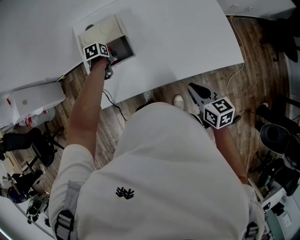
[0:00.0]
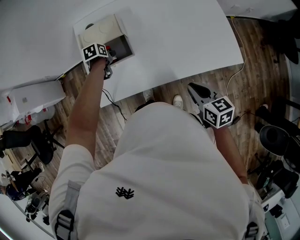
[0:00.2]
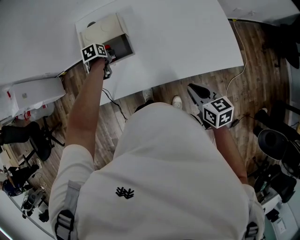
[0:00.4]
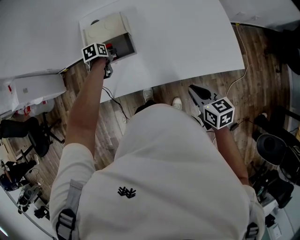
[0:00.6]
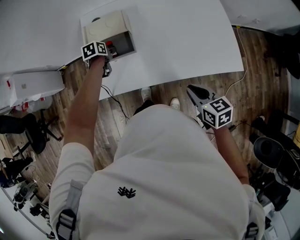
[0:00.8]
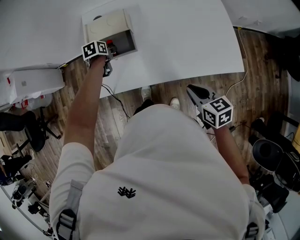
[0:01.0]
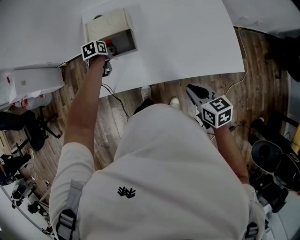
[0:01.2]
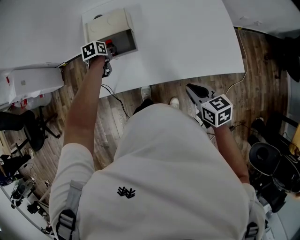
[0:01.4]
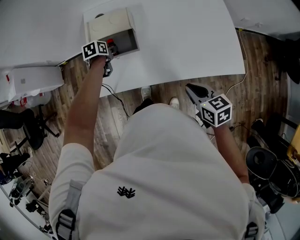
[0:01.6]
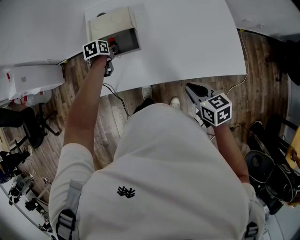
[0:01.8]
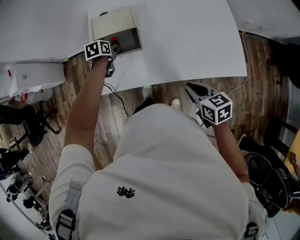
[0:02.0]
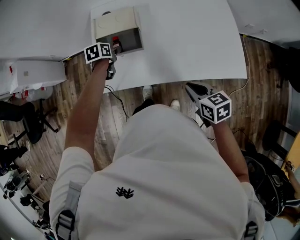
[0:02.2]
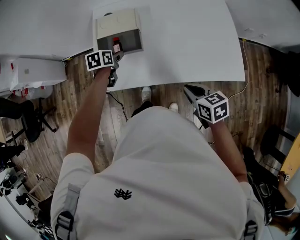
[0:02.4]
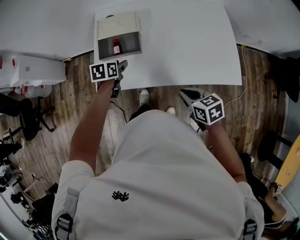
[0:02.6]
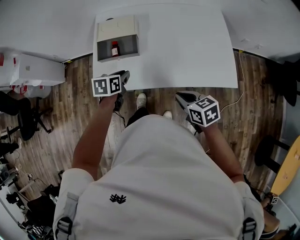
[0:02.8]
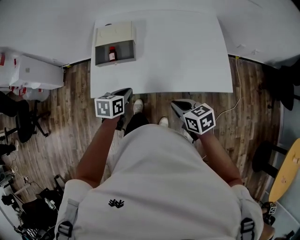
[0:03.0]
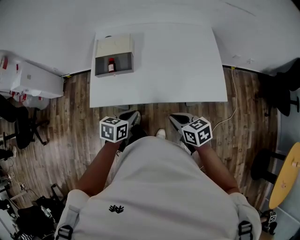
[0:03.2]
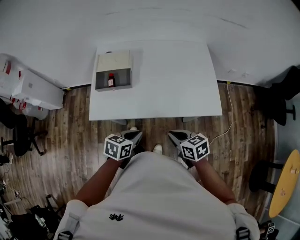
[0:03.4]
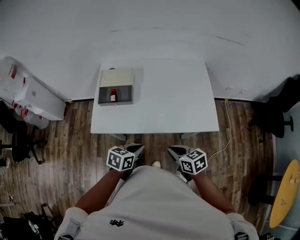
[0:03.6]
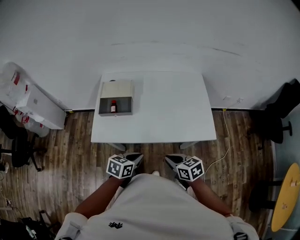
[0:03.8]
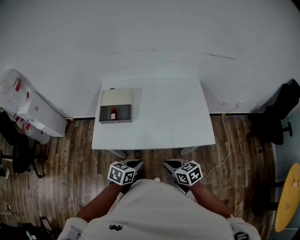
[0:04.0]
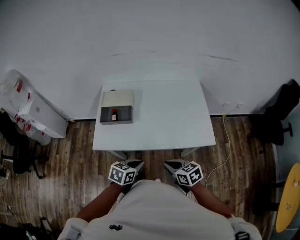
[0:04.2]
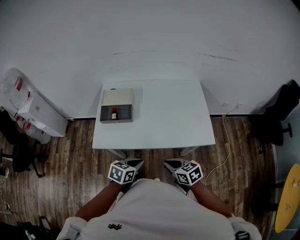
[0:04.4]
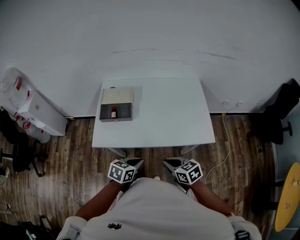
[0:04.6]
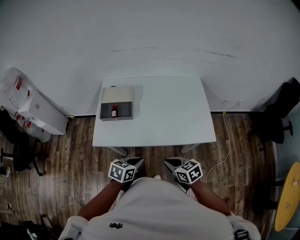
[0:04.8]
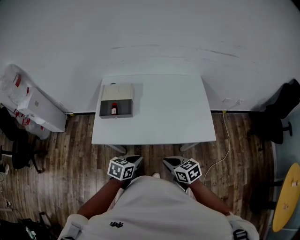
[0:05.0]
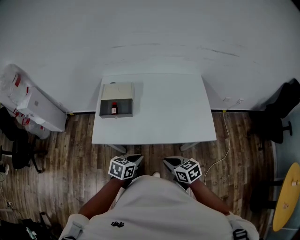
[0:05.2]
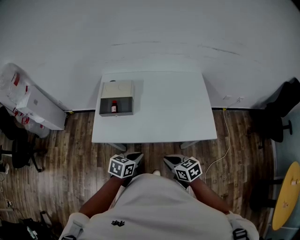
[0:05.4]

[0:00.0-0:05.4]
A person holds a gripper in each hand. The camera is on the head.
0:00.0 to 0:01.4: There are only small adjustments of the grippers.
0:01.4 to 0:02.8: The left gripper moves backward and upward, roughly 20 cm, and closes its fingers.
0:02.8 to 0:04.0: The left gripper shifts roughly 20 cm backward and to the right, while the right gripper shifts approximately 5 cm backward.
0:04.0 to 0:05.4: The grippers make only small movements.

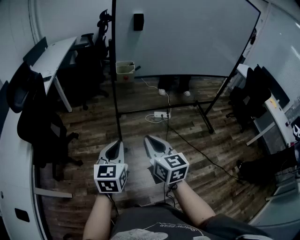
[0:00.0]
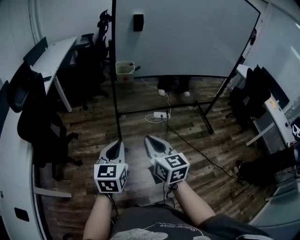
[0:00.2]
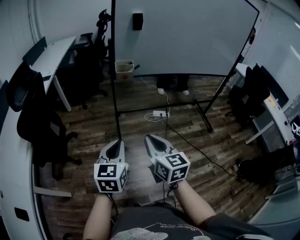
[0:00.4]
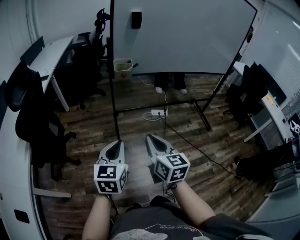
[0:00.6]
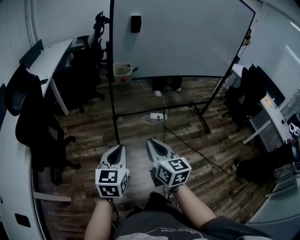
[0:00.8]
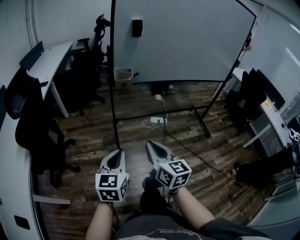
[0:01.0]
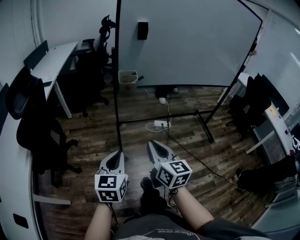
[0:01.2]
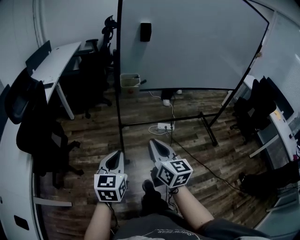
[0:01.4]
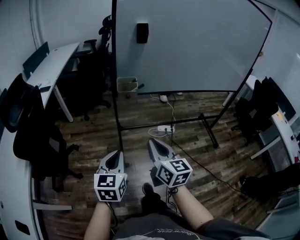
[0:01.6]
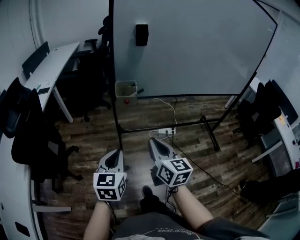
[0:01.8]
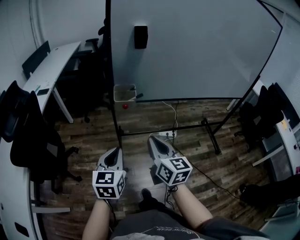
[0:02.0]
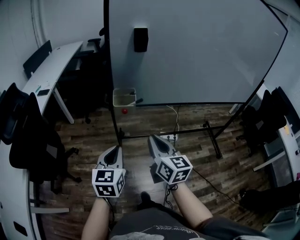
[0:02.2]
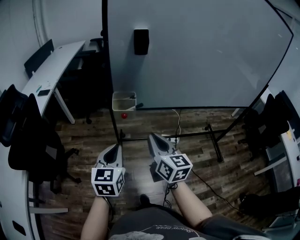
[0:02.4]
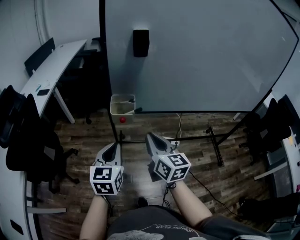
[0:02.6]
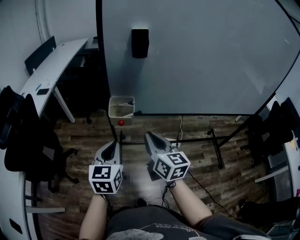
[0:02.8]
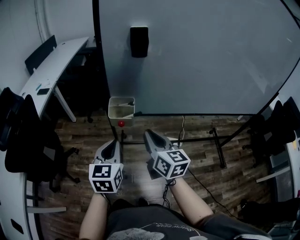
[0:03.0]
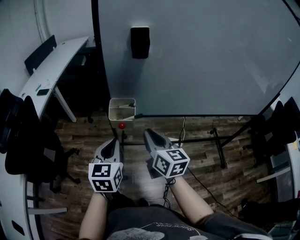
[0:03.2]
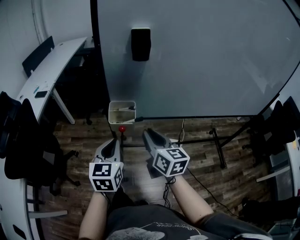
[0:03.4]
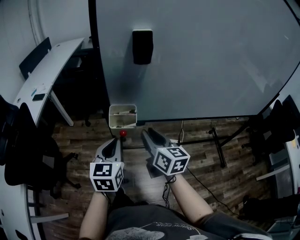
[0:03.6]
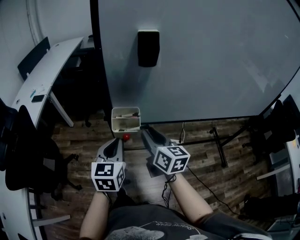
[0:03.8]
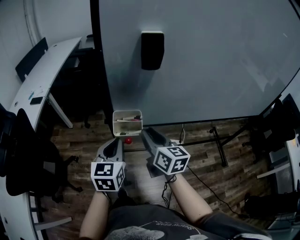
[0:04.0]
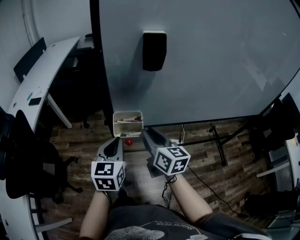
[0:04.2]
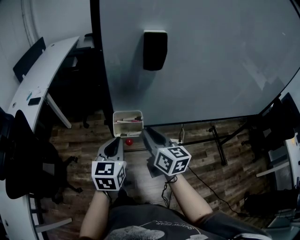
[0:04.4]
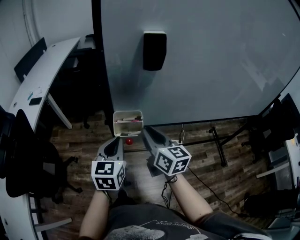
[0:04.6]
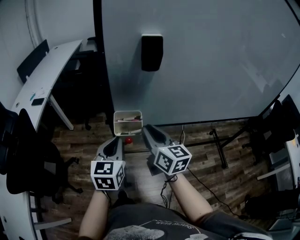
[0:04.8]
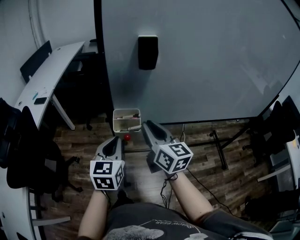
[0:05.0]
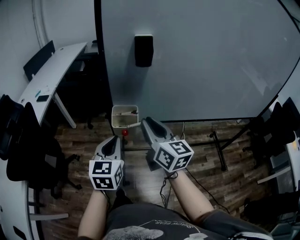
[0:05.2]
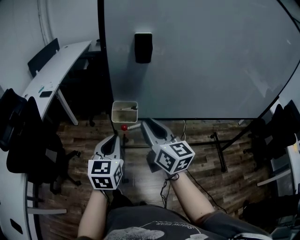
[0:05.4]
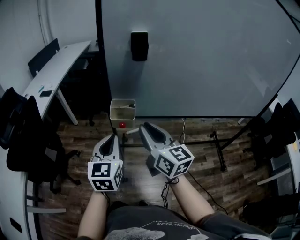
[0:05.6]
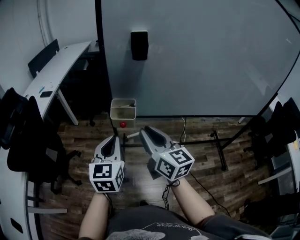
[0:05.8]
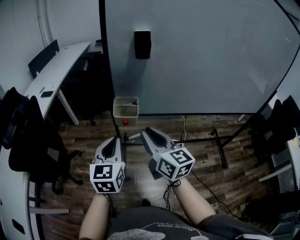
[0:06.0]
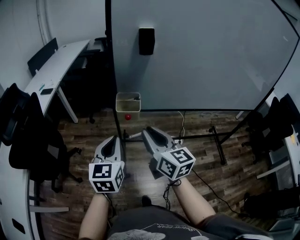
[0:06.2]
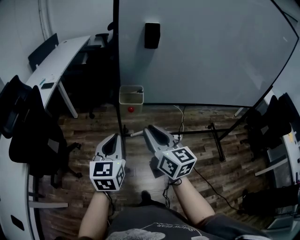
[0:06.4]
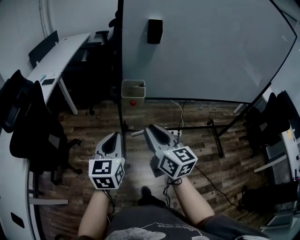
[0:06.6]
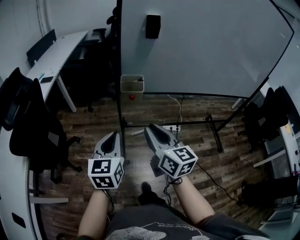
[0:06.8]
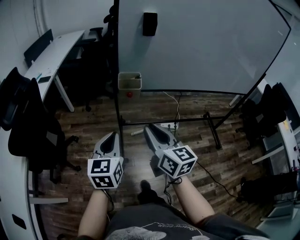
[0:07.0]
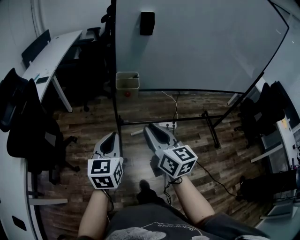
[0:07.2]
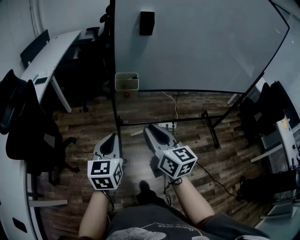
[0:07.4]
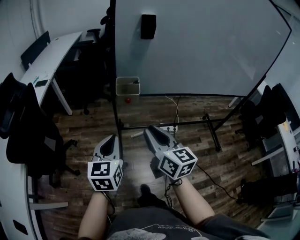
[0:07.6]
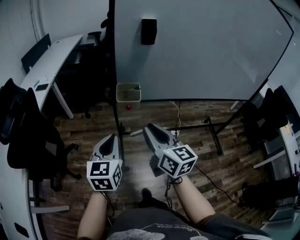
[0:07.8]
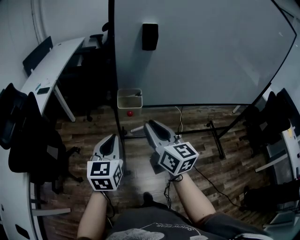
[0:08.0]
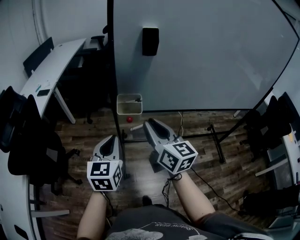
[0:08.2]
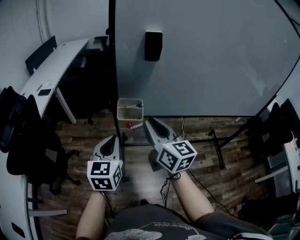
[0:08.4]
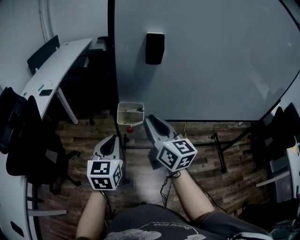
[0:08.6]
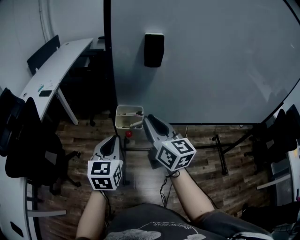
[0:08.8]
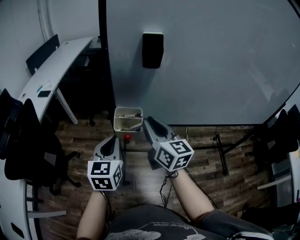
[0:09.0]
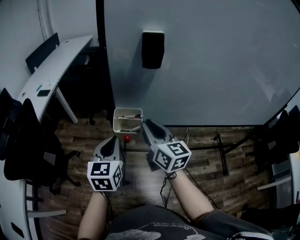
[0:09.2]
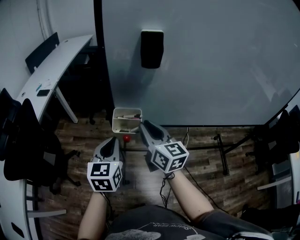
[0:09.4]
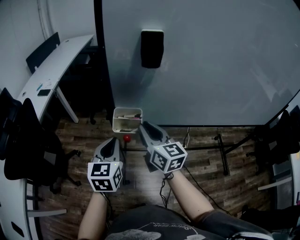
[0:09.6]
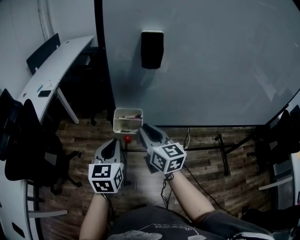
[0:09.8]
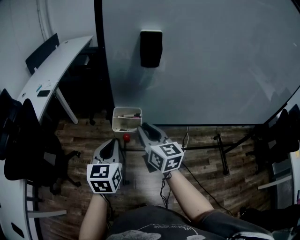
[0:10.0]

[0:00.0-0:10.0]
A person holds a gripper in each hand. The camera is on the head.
0:00.0 to 0:01.4: The grippers both shift forward by some 5 cm.
0:01.4 to 0:02.8: Both grippers move forward, about 25 cm.
0:02.8 to 0:04.2: Both grippers travel together forward, about 15 cm. The right gripper opens.
0:04.2 to 0:05.8: The left gripper shifts roughly 10 cm backward. The right gripper shifts some 15 cm backward and upward.
0:05.8 to 0:07.2: The left gripper moves backward and to the left, some 15 cm, while the right gripper goes approximately 15 cm backward.
0:07.2 to 0:08.6: Both grippers move forward, about 20 cm.
0:08.6 to 0:10.0: The right gripper is displaced downward and forward by roughly 10 cm.

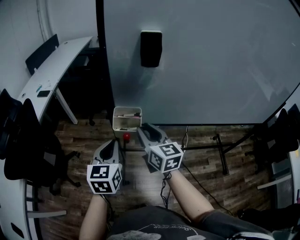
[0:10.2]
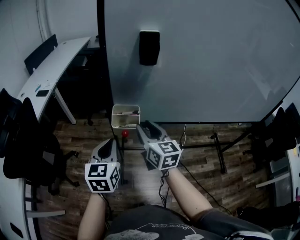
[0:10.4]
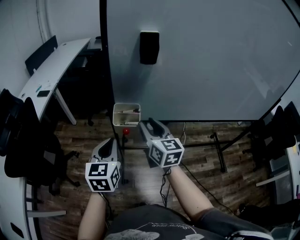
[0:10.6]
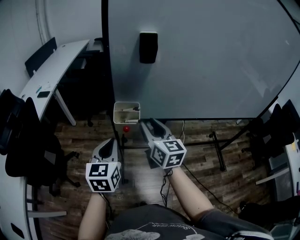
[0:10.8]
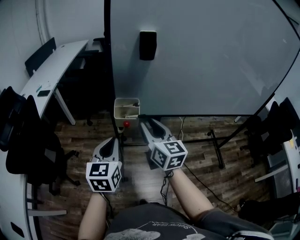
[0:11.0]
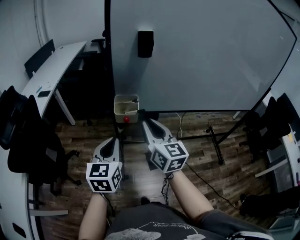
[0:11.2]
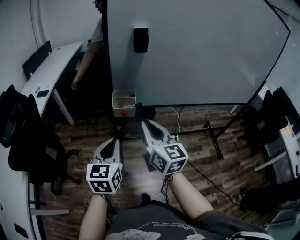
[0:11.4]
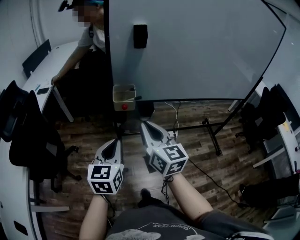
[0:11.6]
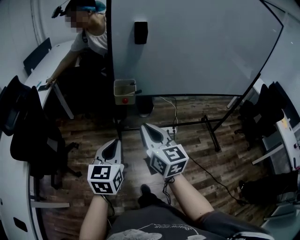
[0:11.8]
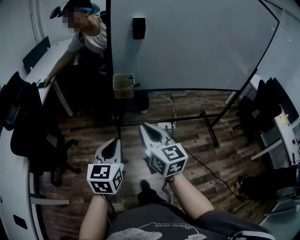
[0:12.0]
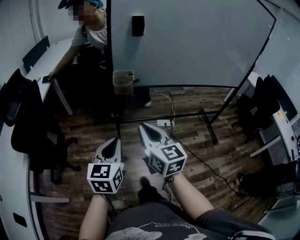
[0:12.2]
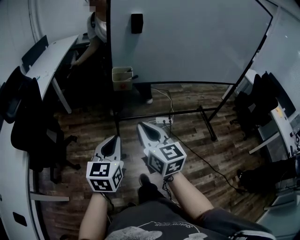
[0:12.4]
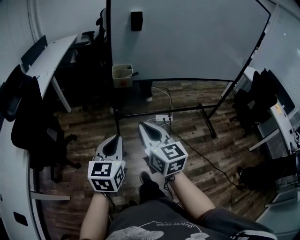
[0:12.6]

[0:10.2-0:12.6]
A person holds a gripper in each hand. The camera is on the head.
0:10.2 to 0:11.4: The left gripper moves backward, about 15 cm, while the right gripper moves backward and upward, some 15 cm.
0:11.4 to 0:12.6: The two grippers go approximately 20 cm backward.

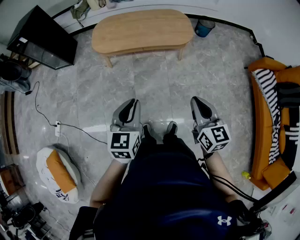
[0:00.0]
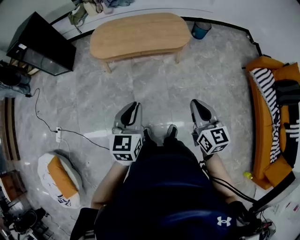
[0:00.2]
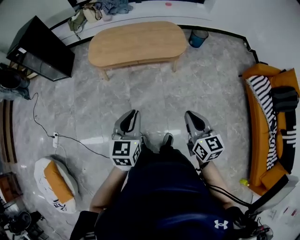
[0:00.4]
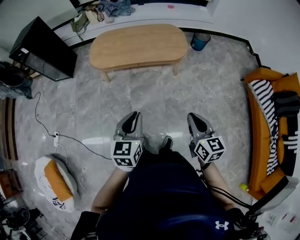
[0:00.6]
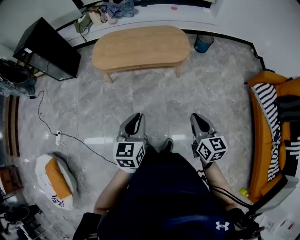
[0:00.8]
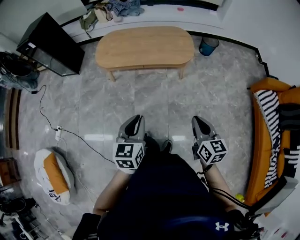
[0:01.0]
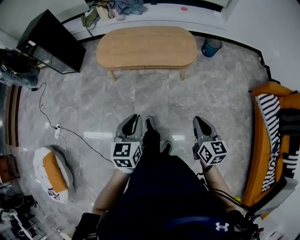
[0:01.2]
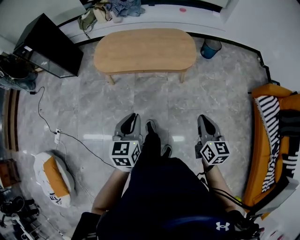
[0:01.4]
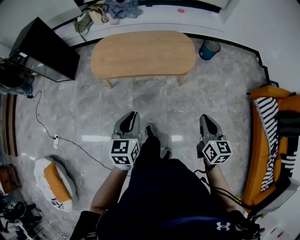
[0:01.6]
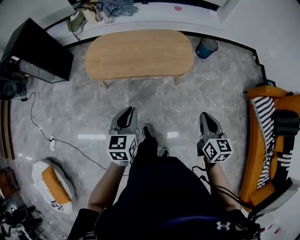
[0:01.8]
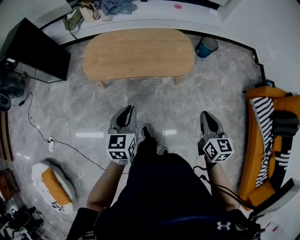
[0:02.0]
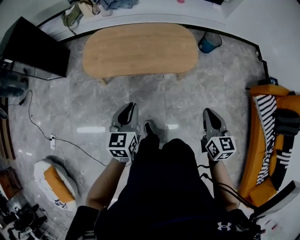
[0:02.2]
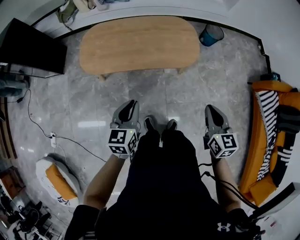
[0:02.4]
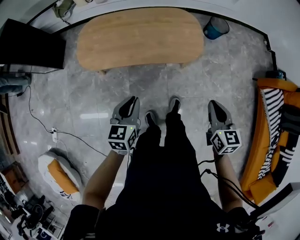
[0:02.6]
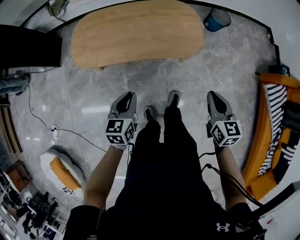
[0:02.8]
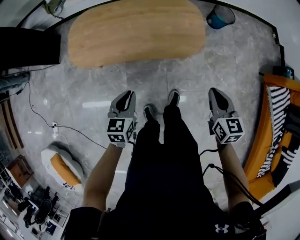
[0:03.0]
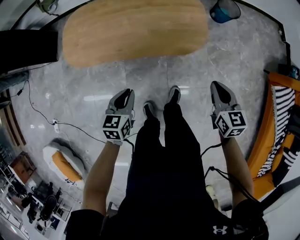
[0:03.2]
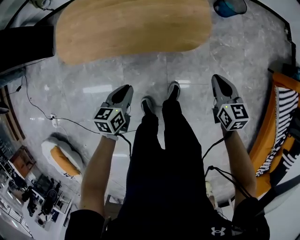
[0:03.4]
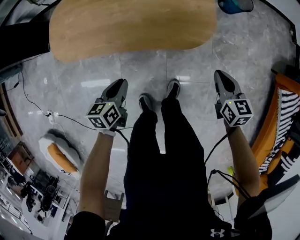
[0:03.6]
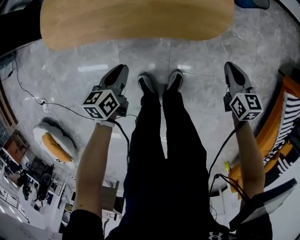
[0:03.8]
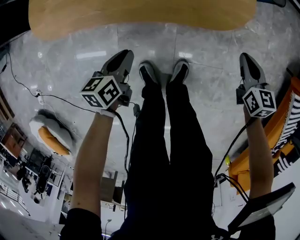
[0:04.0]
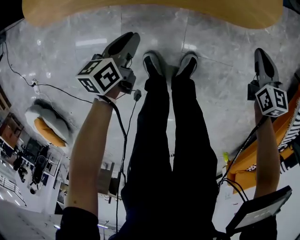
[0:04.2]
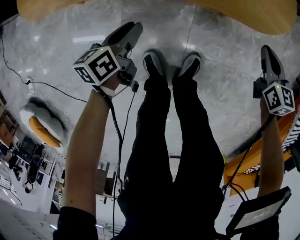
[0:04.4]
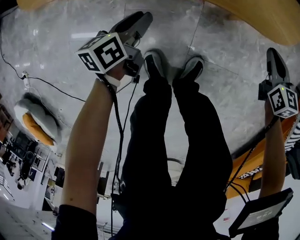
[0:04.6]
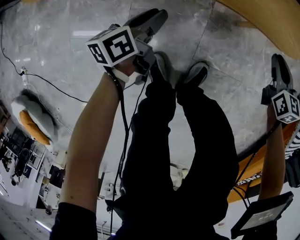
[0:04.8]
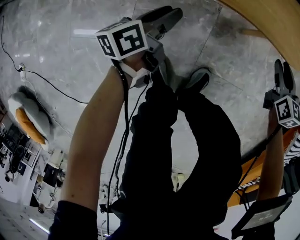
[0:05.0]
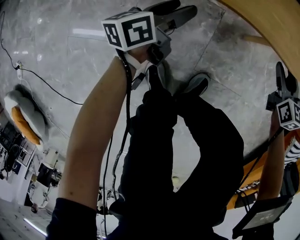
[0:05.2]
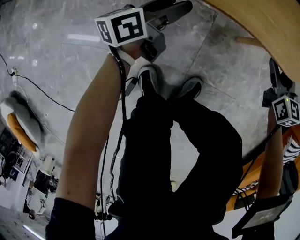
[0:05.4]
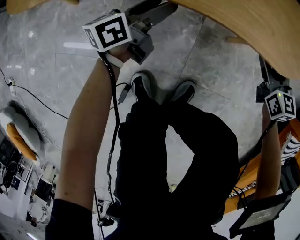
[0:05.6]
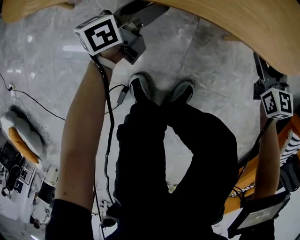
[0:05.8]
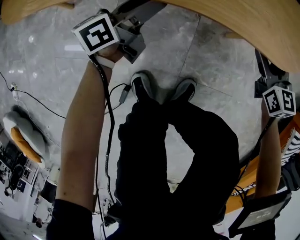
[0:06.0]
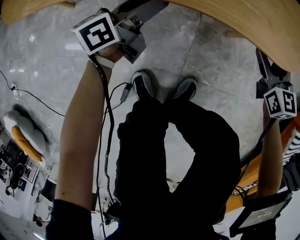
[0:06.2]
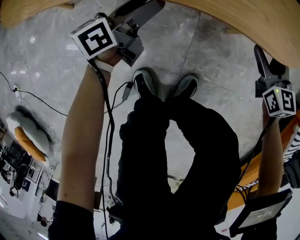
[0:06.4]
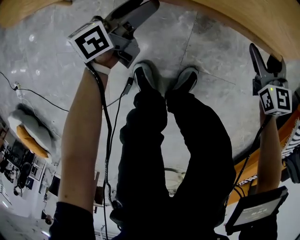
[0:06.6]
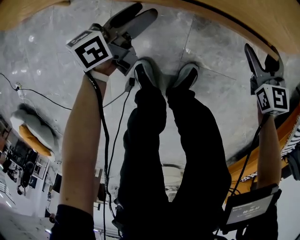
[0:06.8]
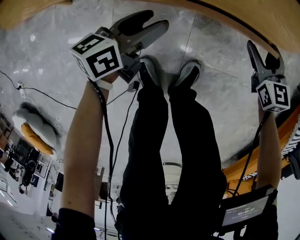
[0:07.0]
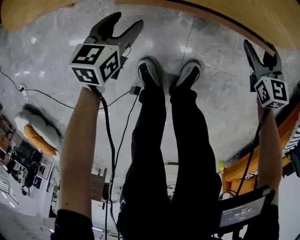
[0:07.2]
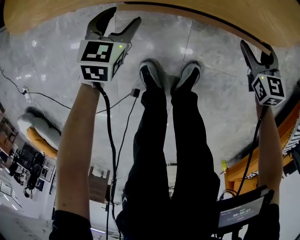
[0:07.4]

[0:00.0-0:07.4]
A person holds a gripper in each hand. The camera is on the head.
0:00.0 to 0:01.4: The left gripper goes about 10 cm forward and to the right. Meanwhile the right gripper shifts approximately 15 cm to the right and forward.
0:01.4 to 0:03.0: The two grippers go some 30 cm forward and downward.
0:03.0 to 0:04.4: The two grippers go roughly 40 cm downward. The left gripper rotates about 40 degrees.
0:04.4 to 0:06.0: The left gripper heads forward and downward, covering roughly 15 cm, angles its fingers upward, by about 30 degrees, and opens. Meanwhile the right gripper heads downward and forward, covering some 10 cm, and opens up.
0:06.0 to 0:07.4: Both grippers move backward, about 5 cm. The left gripper points its fingers about 40 degrees further downward.
